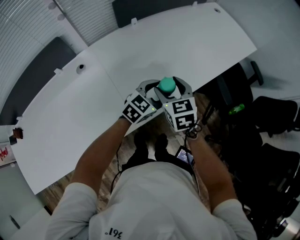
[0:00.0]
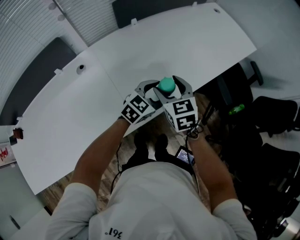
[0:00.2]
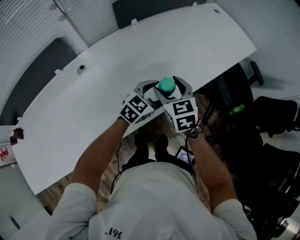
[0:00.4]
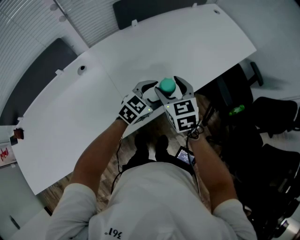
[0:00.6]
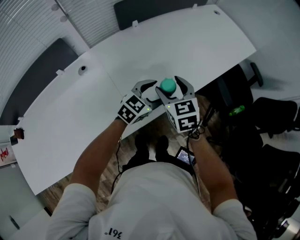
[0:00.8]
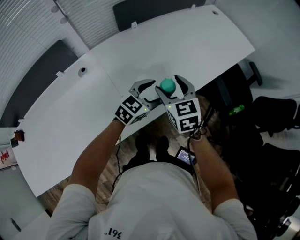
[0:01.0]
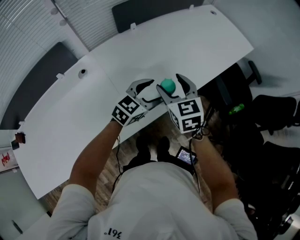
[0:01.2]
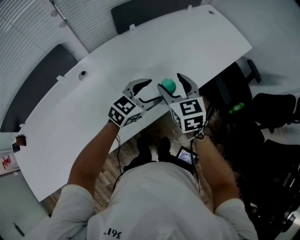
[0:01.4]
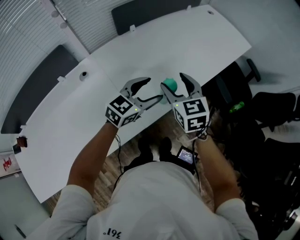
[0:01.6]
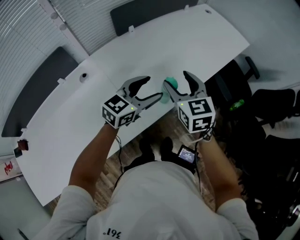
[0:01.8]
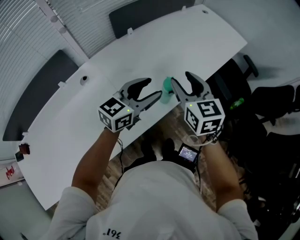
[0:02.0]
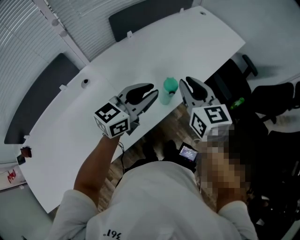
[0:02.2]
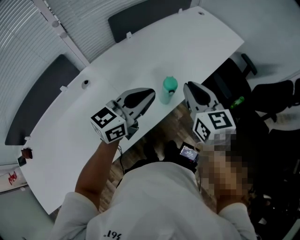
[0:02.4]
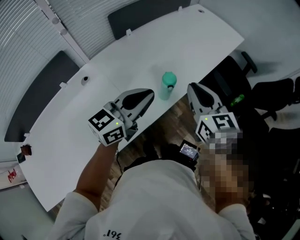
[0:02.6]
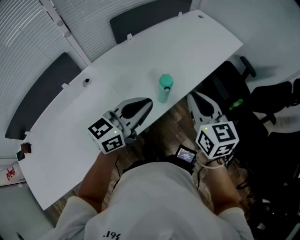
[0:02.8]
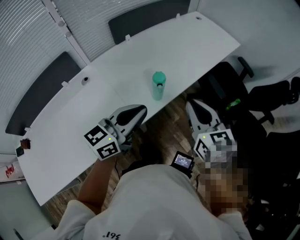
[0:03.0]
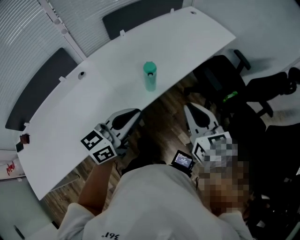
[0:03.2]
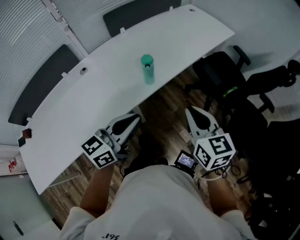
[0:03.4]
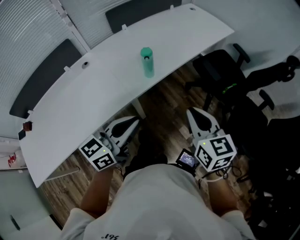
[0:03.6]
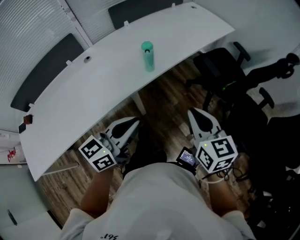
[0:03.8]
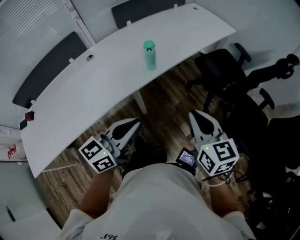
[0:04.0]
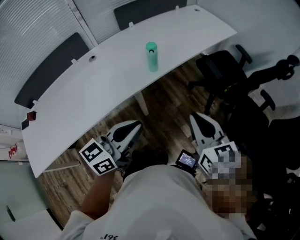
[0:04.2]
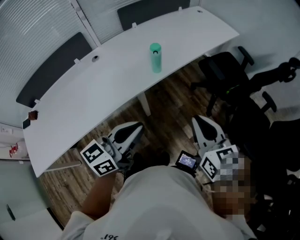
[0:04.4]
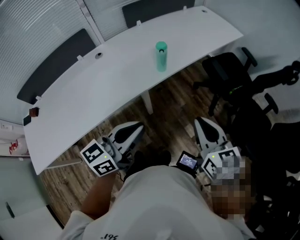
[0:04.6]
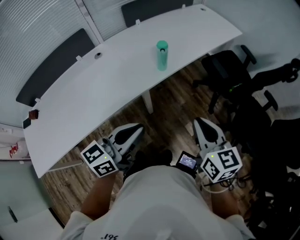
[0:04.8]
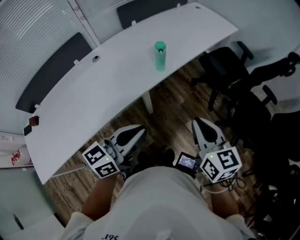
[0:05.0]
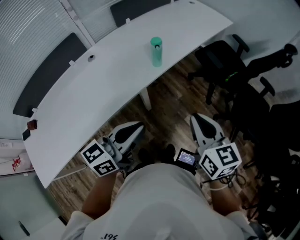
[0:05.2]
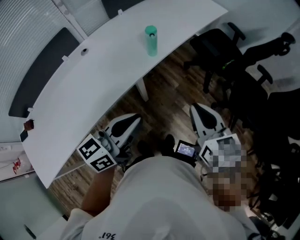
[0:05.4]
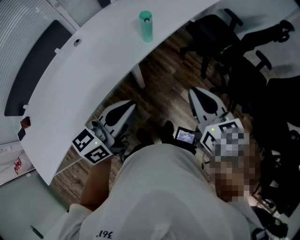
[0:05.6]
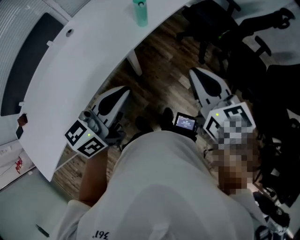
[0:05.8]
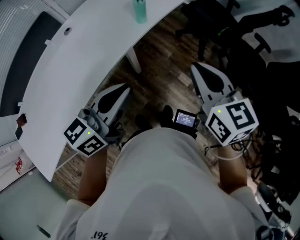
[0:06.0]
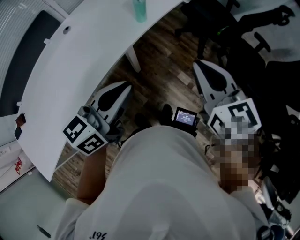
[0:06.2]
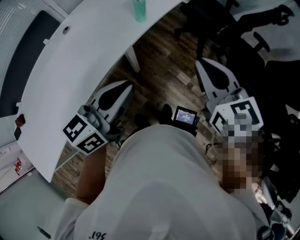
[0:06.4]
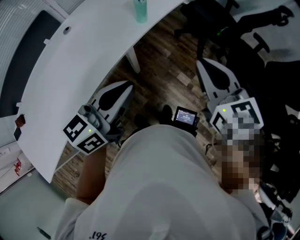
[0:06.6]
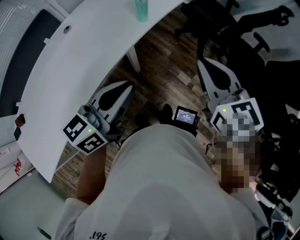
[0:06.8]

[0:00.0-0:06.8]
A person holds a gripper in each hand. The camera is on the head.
0.0 to 1.4 s: The two grippers go roughly 5 cm upward.
1.4 to 2.8 s: The right gripper heads to the right, backward and upward, covering roughly 15 cm, and closes its fingers. Meanwhile the left gripper is displaced upward and backward by some 15 cm, turns by roughly 20 degrees, and closes.
2.8 to 4.0 s: The two grippers go approximately 30 cm backward and to the right.
4.0 to 5.4 s: Both grippers move to the left, approximately 5 cm.
5.4 to 6.8 s: The grippers make only small movements.

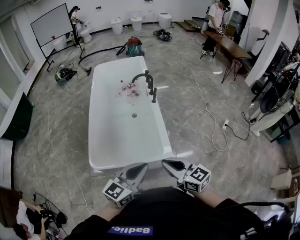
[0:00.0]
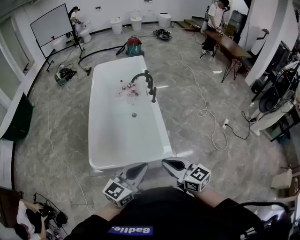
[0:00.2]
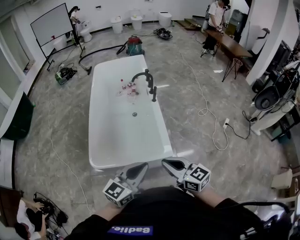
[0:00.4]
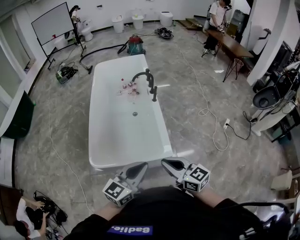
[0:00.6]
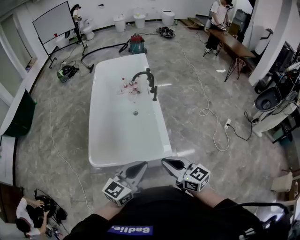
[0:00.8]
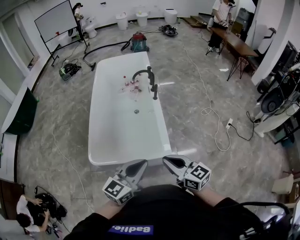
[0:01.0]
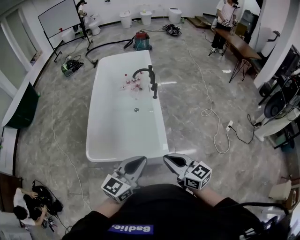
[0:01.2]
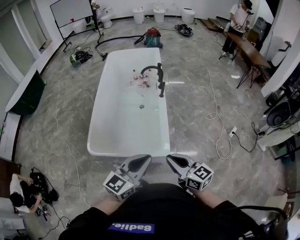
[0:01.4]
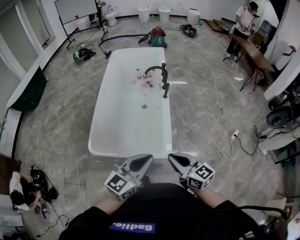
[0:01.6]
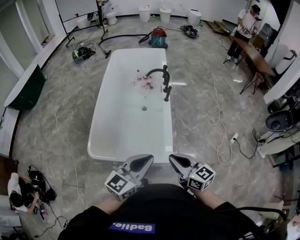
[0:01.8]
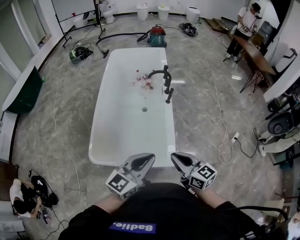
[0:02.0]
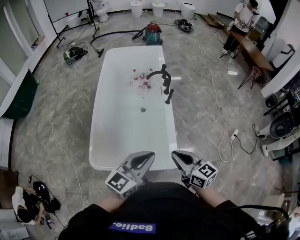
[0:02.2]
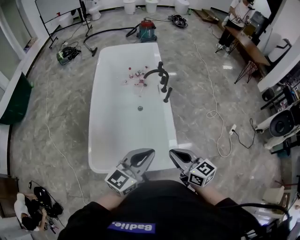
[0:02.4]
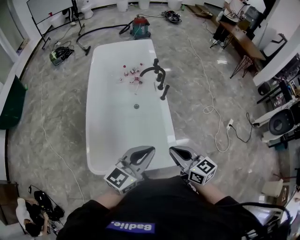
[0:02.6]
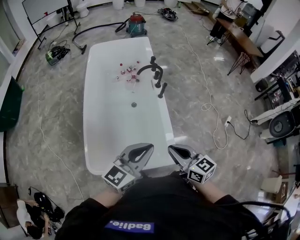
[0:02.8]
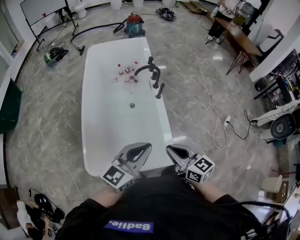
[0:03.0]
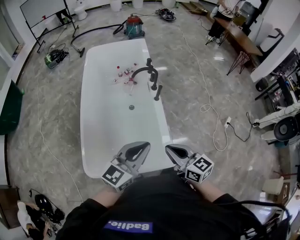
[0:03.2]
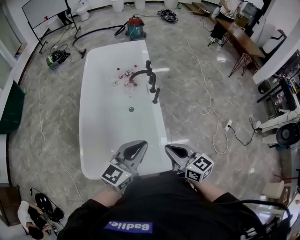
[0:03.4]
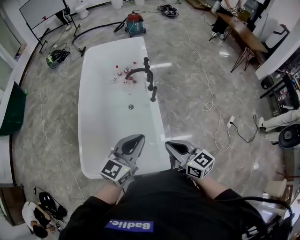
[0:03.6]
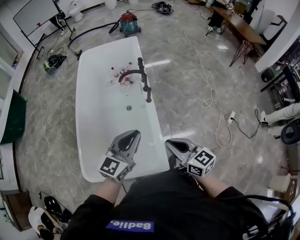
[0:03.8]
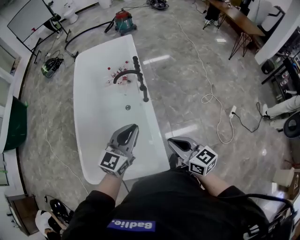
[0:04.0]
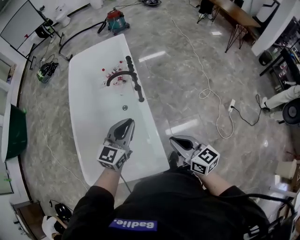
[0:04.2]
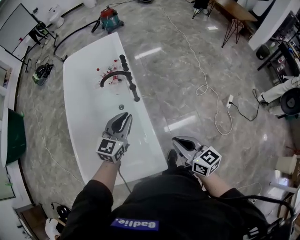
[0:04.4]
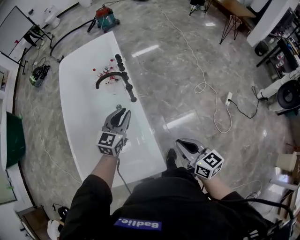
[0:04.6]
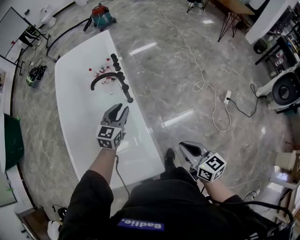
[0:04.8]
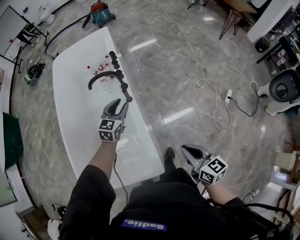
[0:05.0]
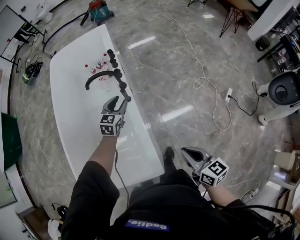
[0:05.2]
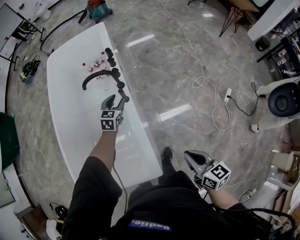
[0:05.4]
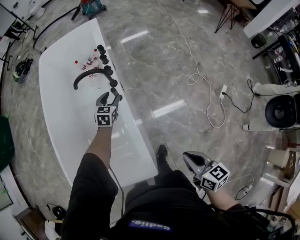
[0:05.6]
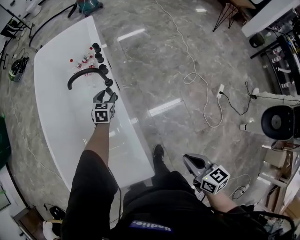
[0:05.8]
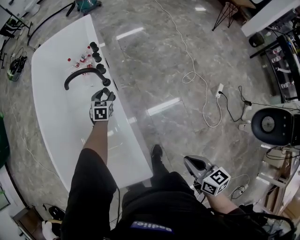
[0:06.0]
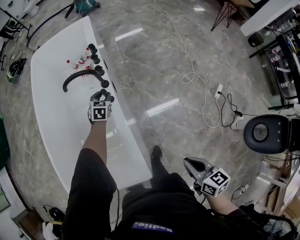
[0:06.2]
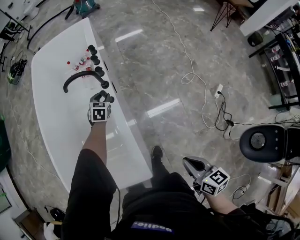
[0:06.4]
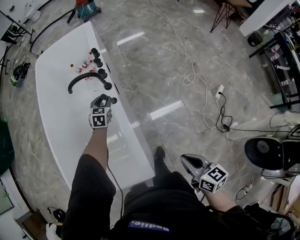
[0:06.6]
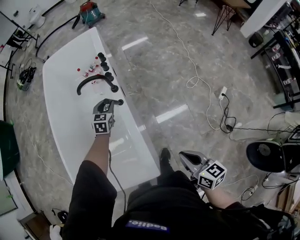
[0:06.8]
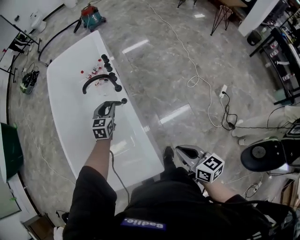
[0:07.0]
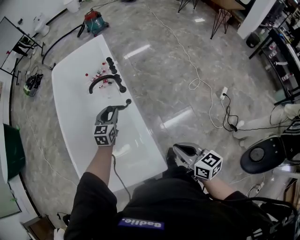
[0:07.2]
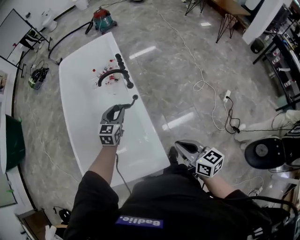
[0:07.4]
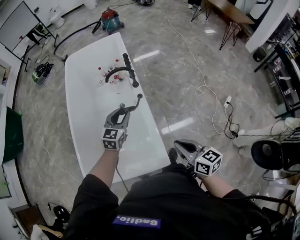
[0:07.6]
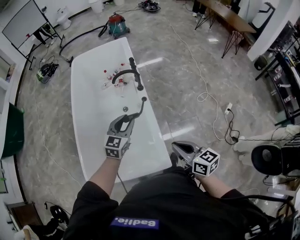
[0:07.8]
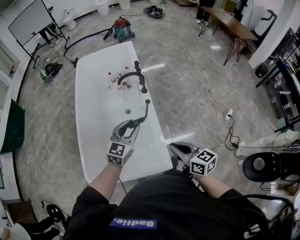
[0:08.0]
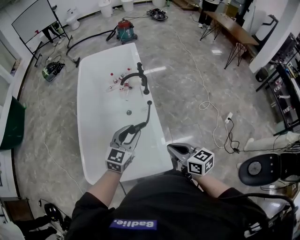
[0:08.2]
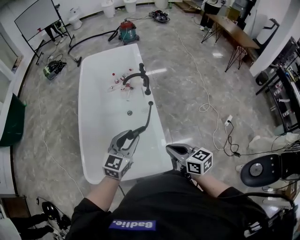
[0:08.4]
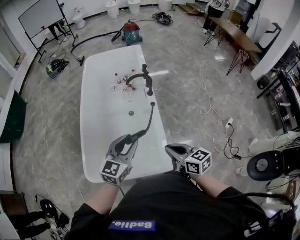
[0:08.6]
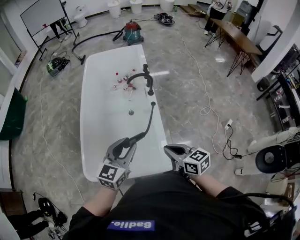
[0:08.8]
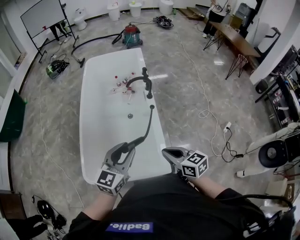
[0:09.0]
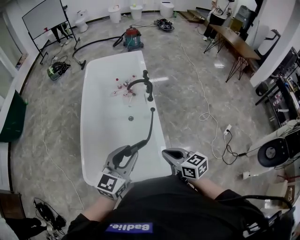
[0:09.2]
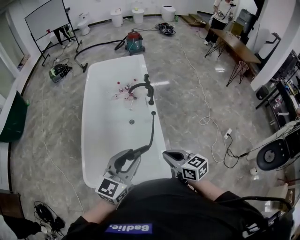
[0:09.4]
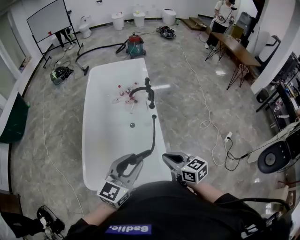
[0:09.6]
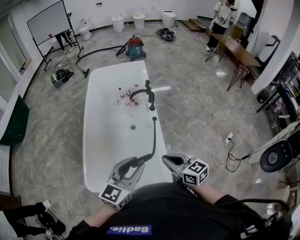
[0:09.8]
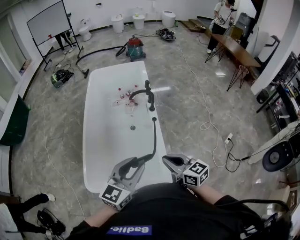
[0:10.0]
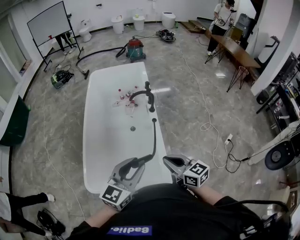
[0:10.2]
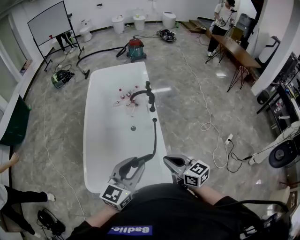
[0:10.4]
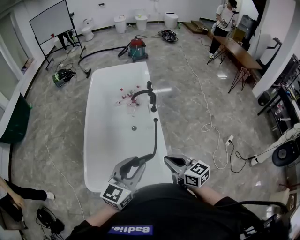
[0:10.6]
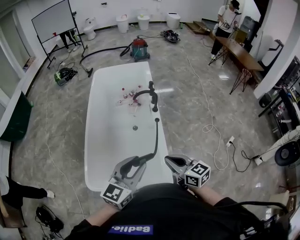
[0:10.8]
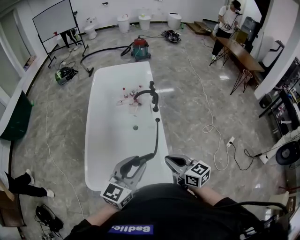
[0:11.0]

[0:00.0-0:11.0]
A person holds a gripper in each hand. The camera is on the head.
0.0 to 1.6 s: The right gripper is displaced to the right and forward by roughly 10 cm; the left gripper shifts some 5 cm to the right.
1.6 to 3.2 s: Both grippers travel together forward, some 20 cm.
3.2 to 4.8 s: The left gripper heads forward, to the right and downward, covering some 40 cm, swivels approximately 20 degrees, and opens its fingers, while the right gripper is displaced to the right by about 30 cm.
4.8 to 6.2 s: The right gripper heads downward and to the right, covering some 10 cm; the left gripper goes about 30 cm downward and forward, and rotates about 30 degrees.
6.2 to 7.8 s: The right gripper goes roughly 25 cm to the left and upward. The left gripper goes roughly 40 cm backward, upward and to the left, and turns by approximately 30 degrees.
7.8 to 9.4 s: The right gripper moves to the left, some 10 cm. The left gripper heads backward, upward and to the left, covering approximately 25 cm.
9.4 to 11.0 s: The grippers stay close to where they were, moving slightly.

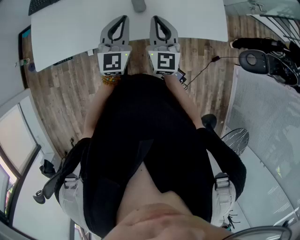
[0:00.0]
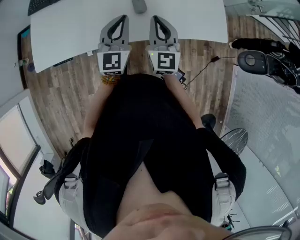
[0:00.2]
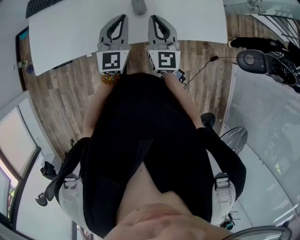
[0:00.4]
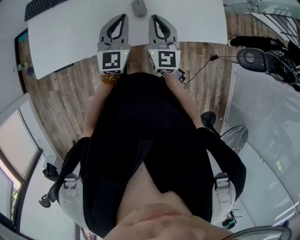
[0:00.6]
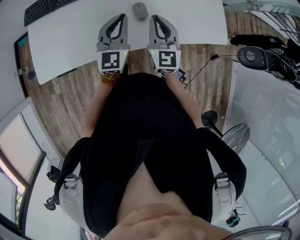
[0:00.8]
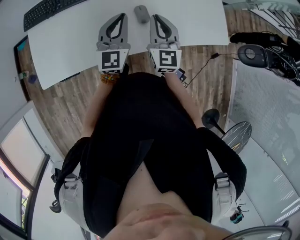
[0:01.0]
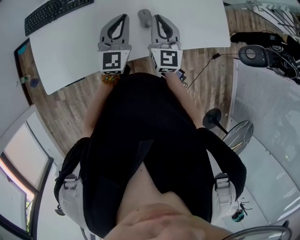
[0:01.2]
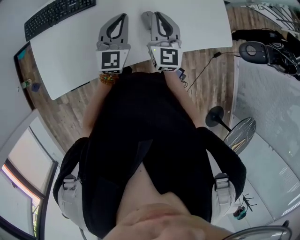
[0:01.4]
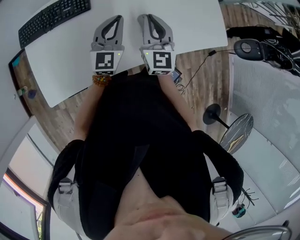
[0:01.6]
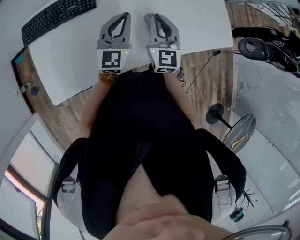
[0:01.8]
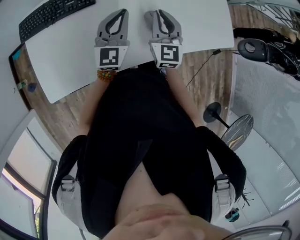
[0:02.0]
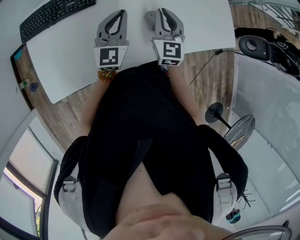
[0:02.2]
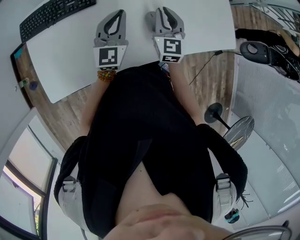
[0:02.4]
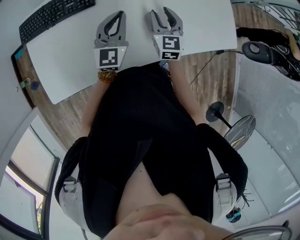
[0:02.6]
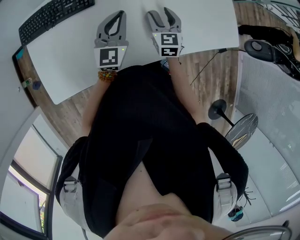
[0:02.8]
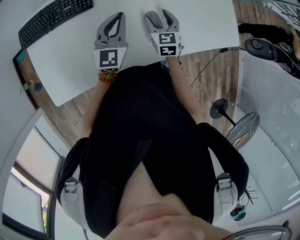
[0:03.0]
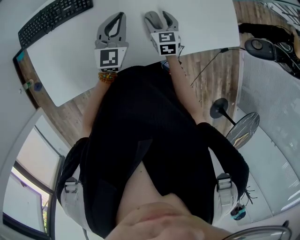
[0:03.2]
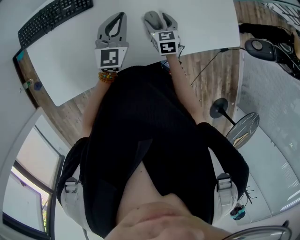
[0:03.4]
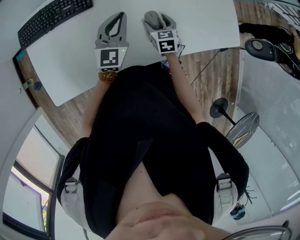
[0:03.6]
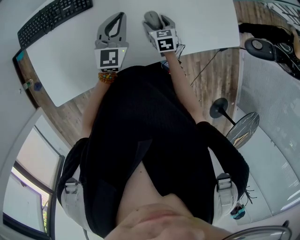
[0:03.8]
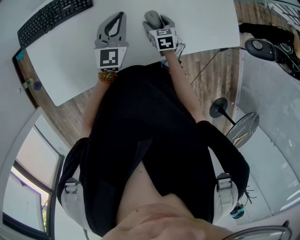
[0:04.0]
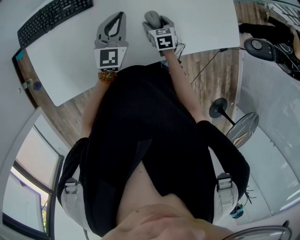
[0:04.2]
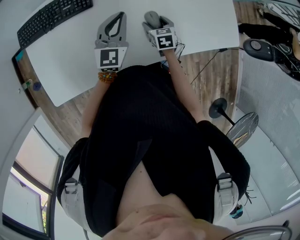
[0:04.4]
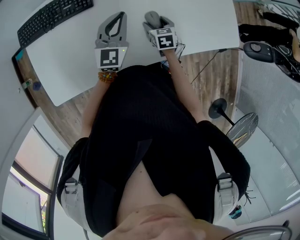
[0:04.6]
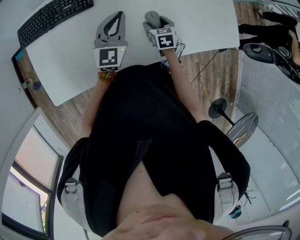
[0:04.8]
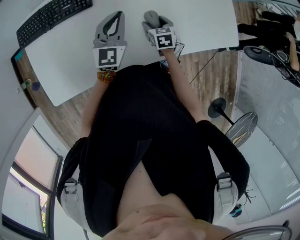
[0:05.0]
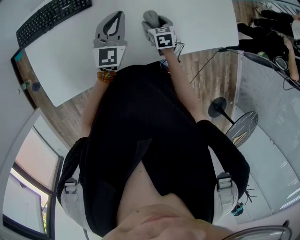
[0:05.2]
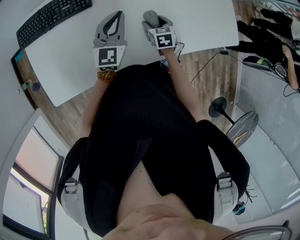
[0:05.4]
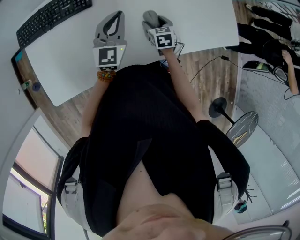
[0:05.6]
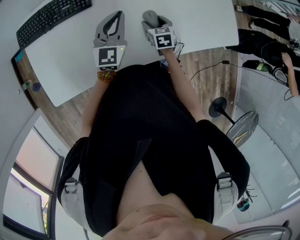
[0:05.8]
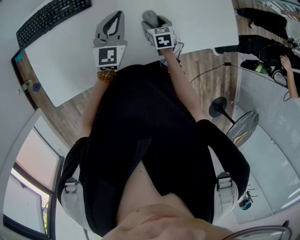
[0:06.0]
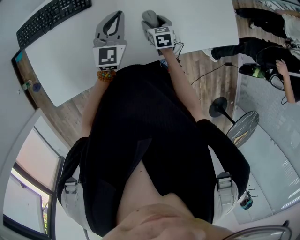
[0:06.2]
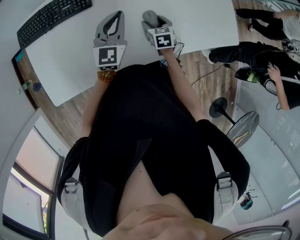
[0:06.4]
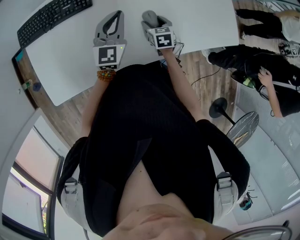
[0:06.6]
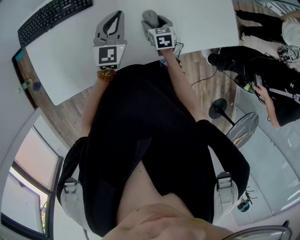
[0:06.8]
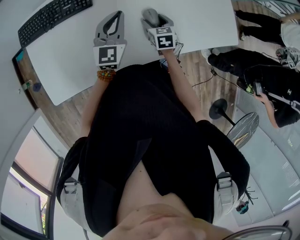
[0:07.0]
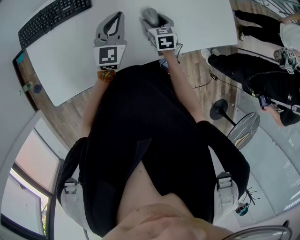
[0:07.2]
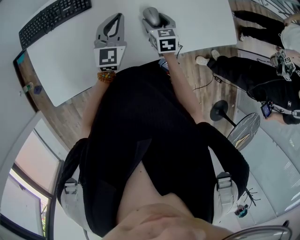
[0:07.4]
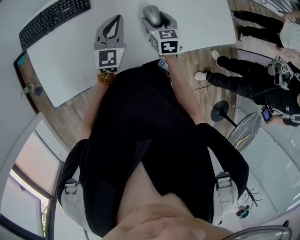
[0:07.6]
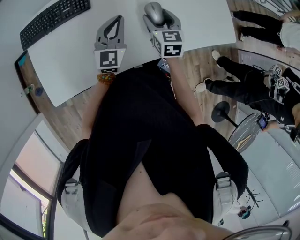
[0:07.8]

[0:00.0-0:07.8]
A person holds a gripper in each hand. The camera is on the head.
0.0 to 1.6 s: The grippers both shift forward and to the left by roughly 15 cm.
1.6 to 3.2 s: The right gripper shifts about 20 cm downward, turns by approximately 30 degrees, and opens up. The left gripper changes place by approximately 5 cm.
3.2 to 4.6 s: The right gripper is displaced downward by roughly 10 cm.
4.6 to 6.2 s: Both grippers stay put.
6.2 to 7.8 s: The right gripper moves upward, some 15 cm, and changes its angle by some 20 degrees.
